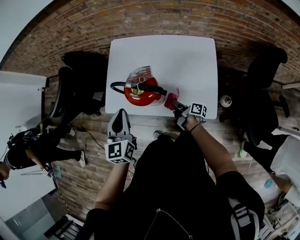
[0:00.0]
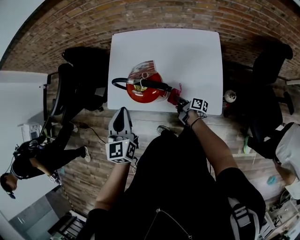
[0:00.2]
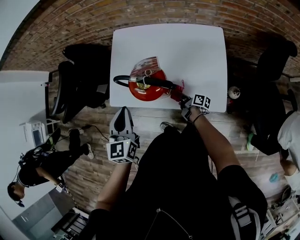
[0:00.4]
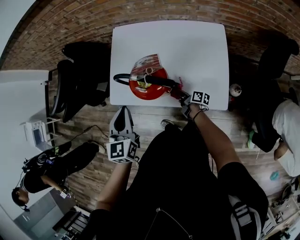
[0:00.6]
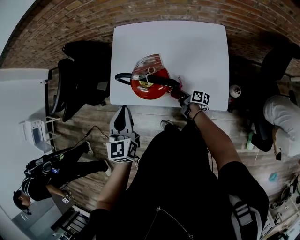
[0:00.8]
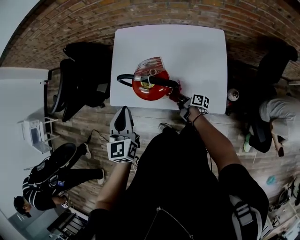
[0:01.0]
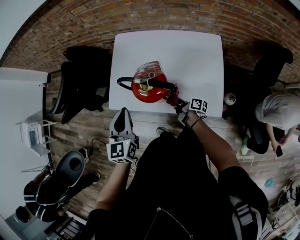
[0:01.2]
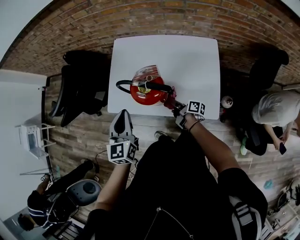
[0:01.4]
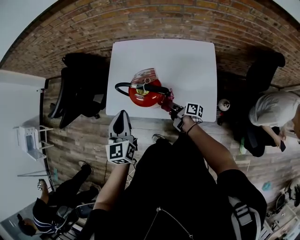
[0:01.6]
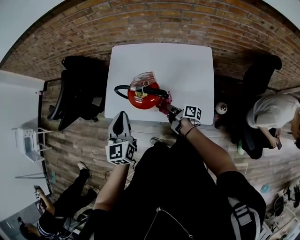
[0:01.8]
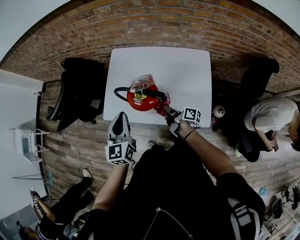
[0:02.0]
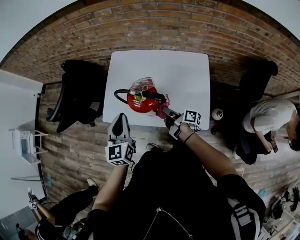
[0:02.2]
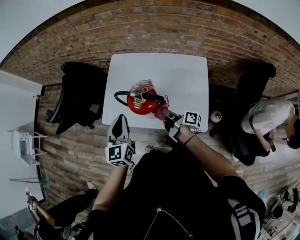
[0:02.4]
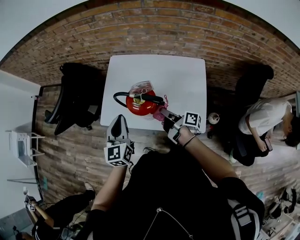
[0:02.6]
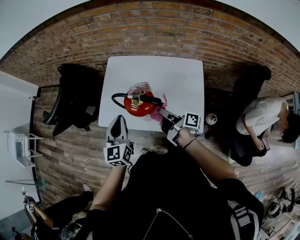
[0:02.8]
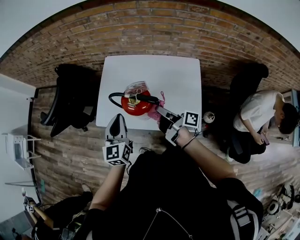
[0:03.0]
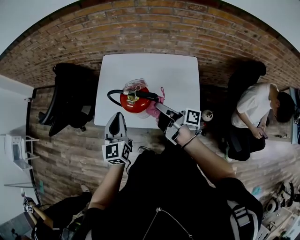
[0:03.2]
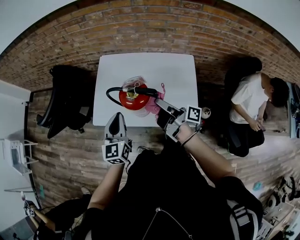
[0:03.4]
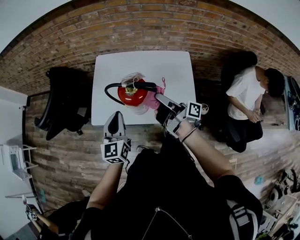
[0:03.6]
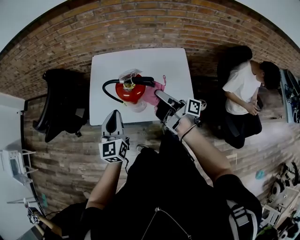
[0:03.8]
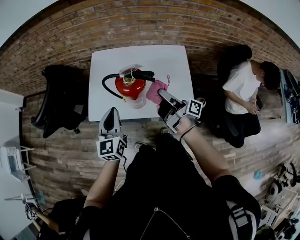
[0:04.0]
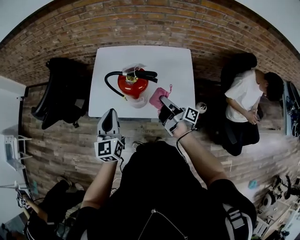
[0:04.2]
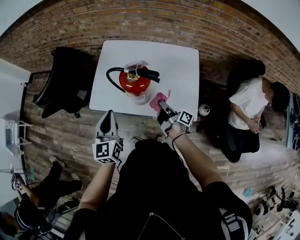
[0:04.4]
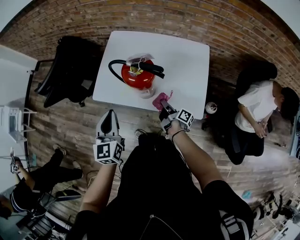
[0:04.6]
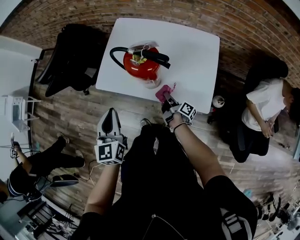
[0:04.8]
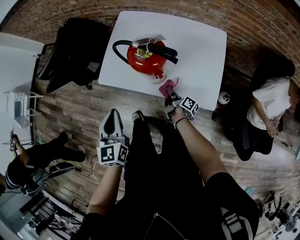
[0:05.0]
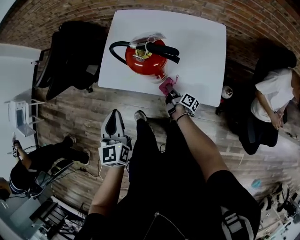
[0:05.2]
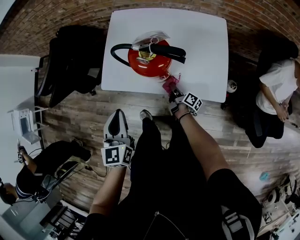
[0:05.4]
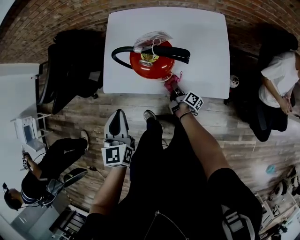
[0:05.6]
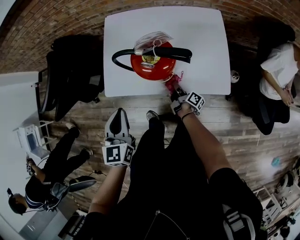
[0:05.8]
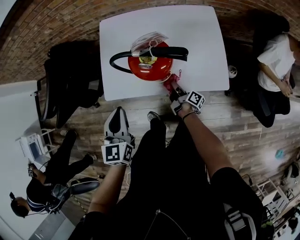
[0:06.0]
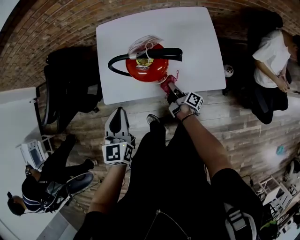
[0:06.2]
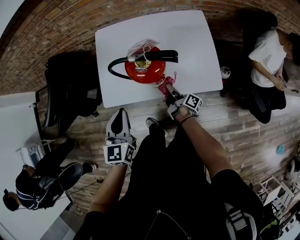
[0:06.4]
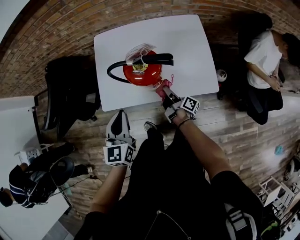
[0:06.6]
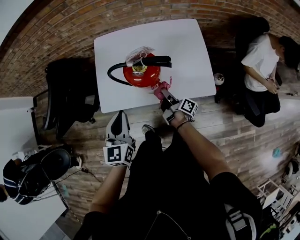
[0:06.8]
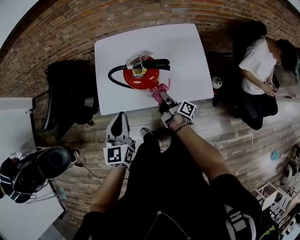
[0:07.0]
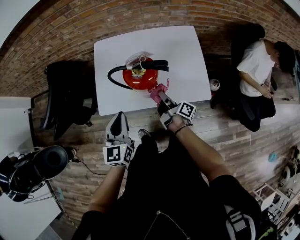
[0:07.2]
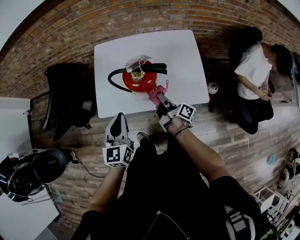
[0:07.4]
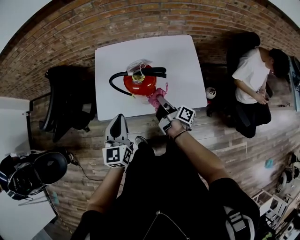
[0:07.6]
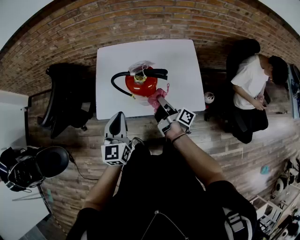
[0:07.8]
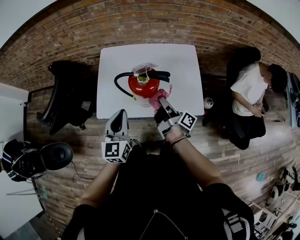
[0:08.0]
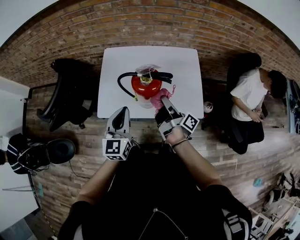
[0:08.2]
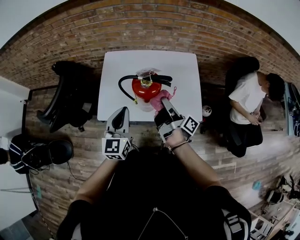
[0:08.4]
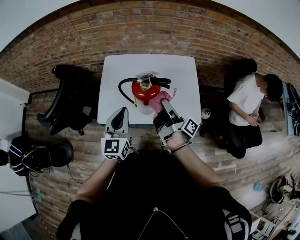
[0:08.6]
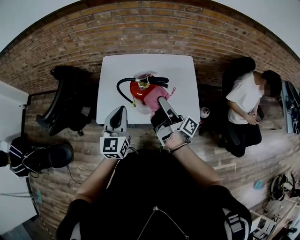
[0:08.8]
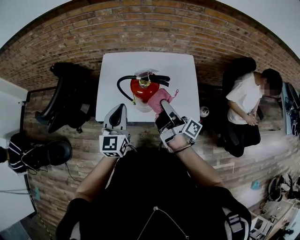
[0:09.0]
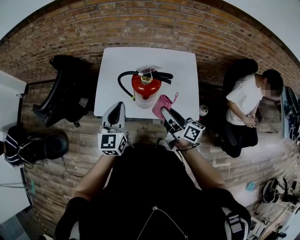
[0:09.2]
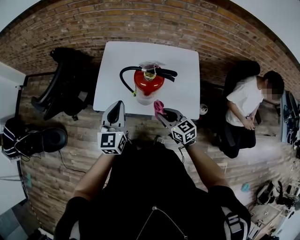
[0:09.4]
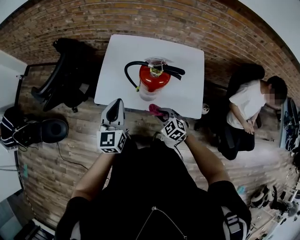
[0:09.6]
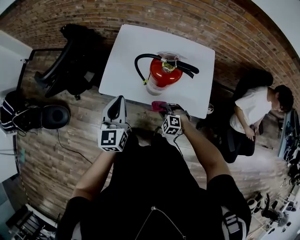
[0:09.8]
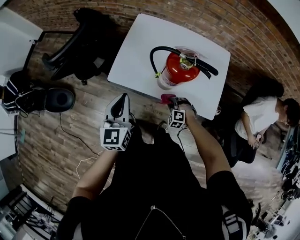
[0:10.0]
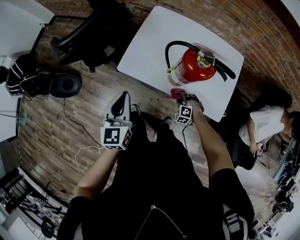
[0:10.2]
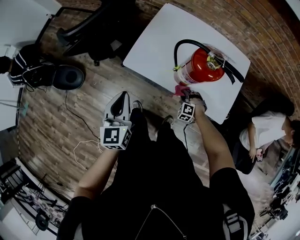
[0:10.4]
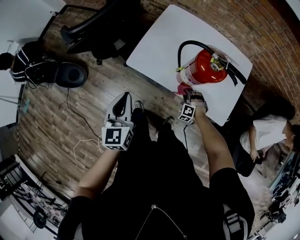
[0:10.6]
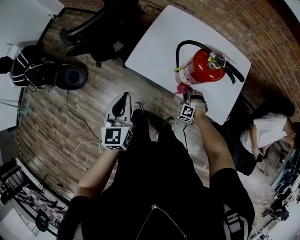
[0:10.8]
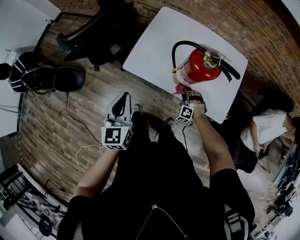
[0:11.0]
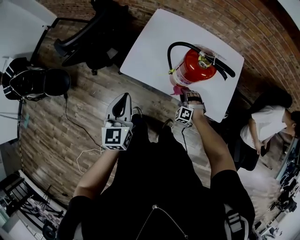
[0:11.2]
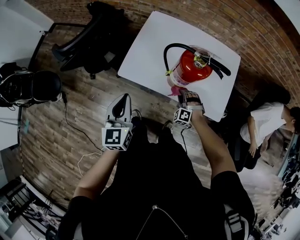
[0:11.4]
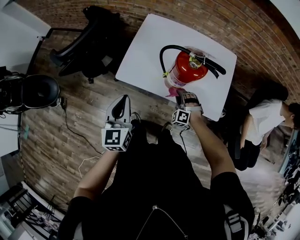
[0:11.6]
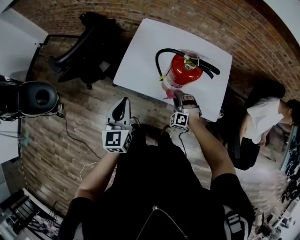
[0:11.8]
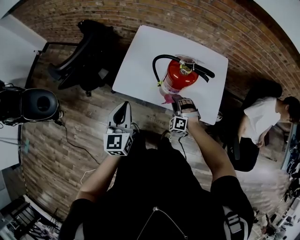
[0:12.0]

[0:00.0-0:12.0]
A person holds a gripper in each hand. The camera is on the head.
0:03.0 to 0:04.4: The left gripper moves some 10 cm.
0:04.4 to 0:06.0: The left gripper is displaced downward by roughly 5 cm.
0:06.0 to 0:07.6: The left gripper goes approximately 5 cm upward.
0:07.6 to 0:09.0: The left gripper is displaced upward by approximately 5 cm.
0:09.0 to 0:10.4: The left gripper moves about 20 cm, and changes its angle by about 30 degrees.
0:10.4 to 0:12.0: The left gripper shifts by about 5 cm.

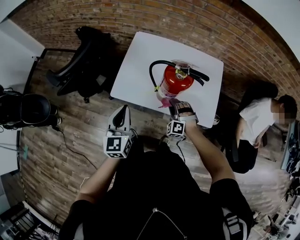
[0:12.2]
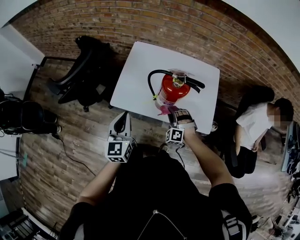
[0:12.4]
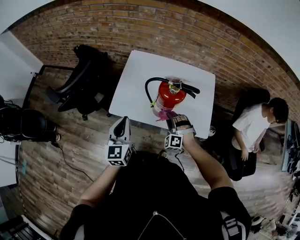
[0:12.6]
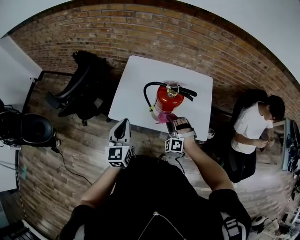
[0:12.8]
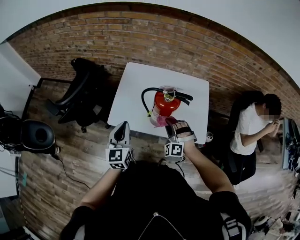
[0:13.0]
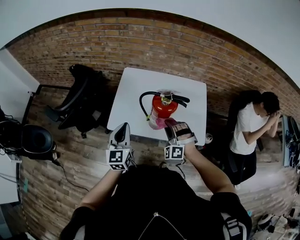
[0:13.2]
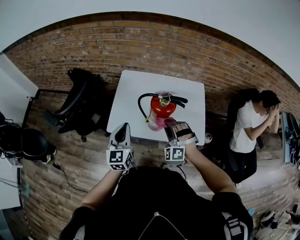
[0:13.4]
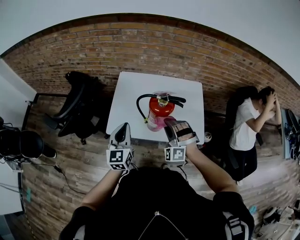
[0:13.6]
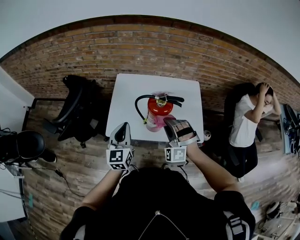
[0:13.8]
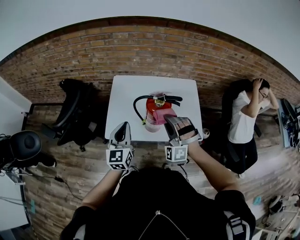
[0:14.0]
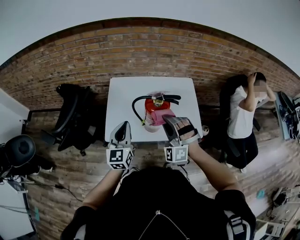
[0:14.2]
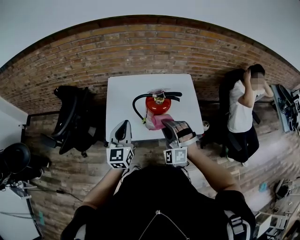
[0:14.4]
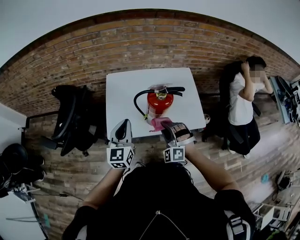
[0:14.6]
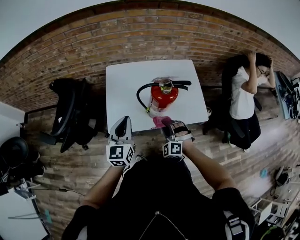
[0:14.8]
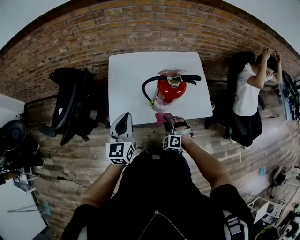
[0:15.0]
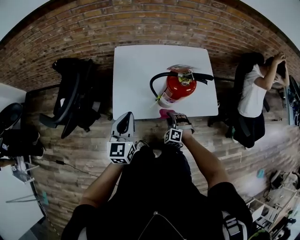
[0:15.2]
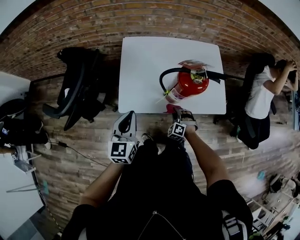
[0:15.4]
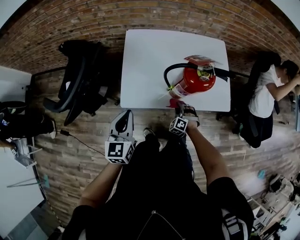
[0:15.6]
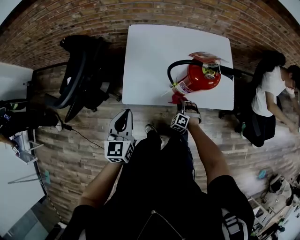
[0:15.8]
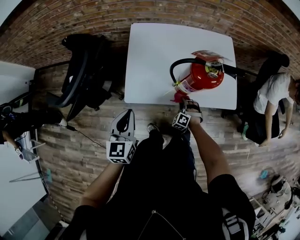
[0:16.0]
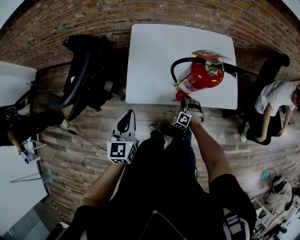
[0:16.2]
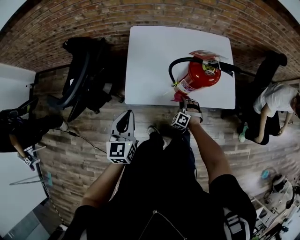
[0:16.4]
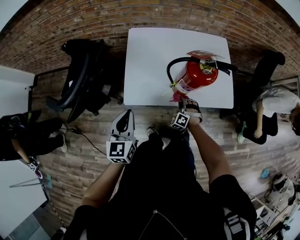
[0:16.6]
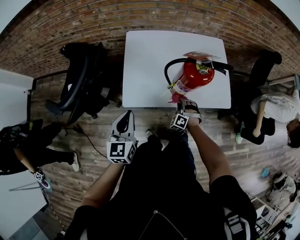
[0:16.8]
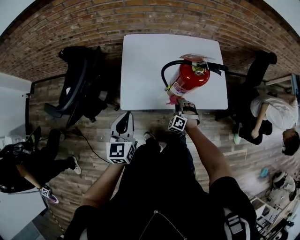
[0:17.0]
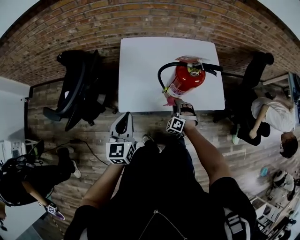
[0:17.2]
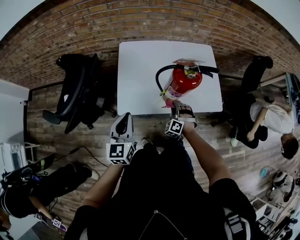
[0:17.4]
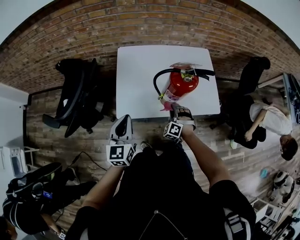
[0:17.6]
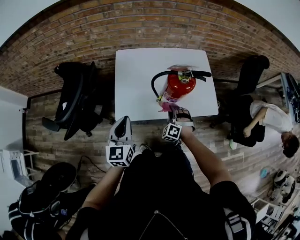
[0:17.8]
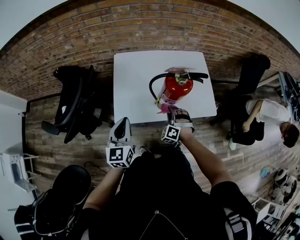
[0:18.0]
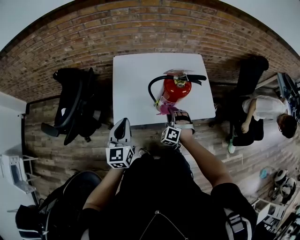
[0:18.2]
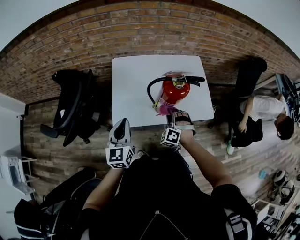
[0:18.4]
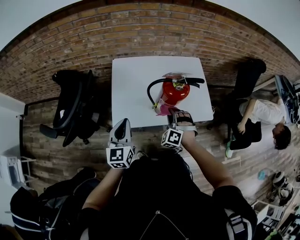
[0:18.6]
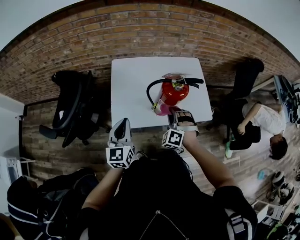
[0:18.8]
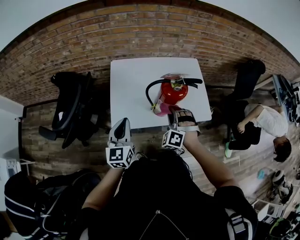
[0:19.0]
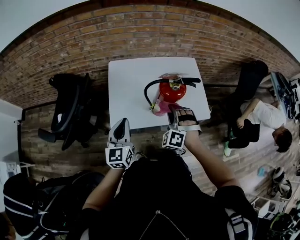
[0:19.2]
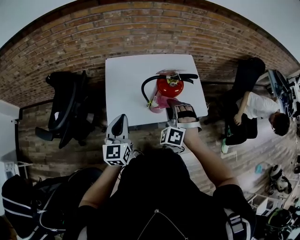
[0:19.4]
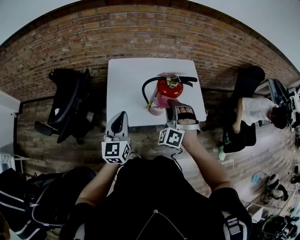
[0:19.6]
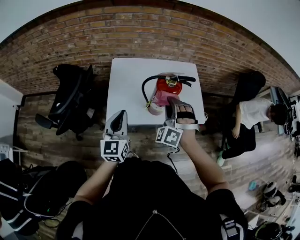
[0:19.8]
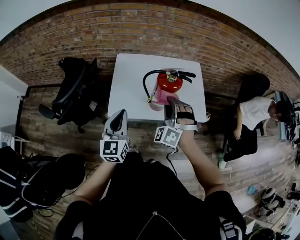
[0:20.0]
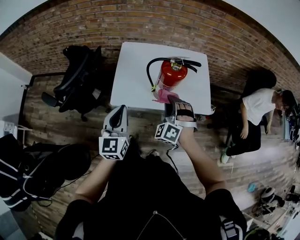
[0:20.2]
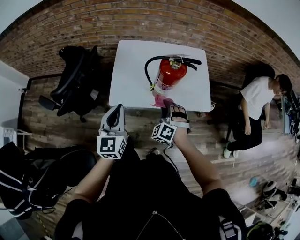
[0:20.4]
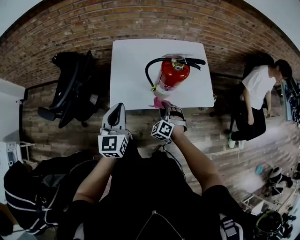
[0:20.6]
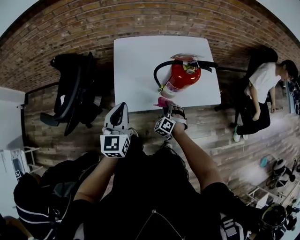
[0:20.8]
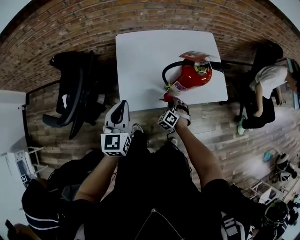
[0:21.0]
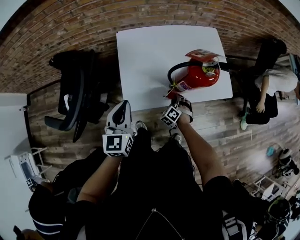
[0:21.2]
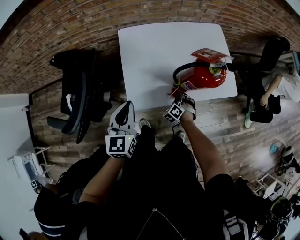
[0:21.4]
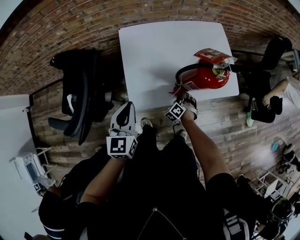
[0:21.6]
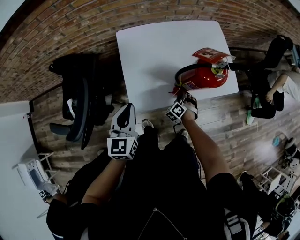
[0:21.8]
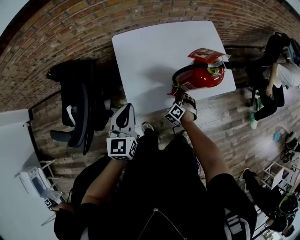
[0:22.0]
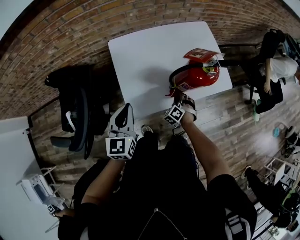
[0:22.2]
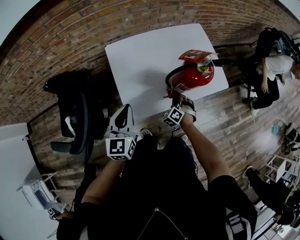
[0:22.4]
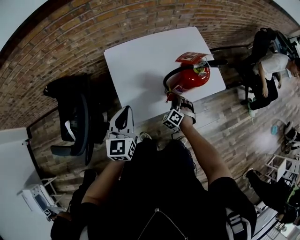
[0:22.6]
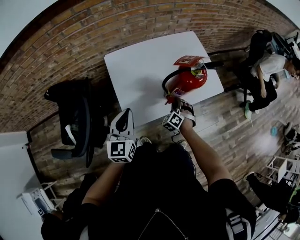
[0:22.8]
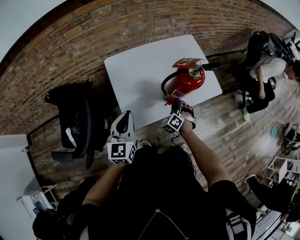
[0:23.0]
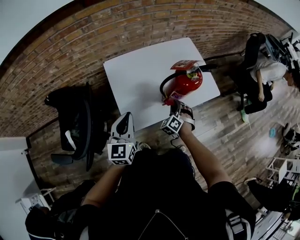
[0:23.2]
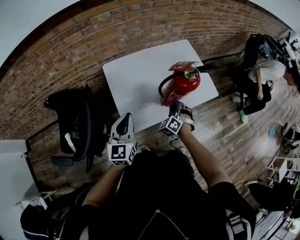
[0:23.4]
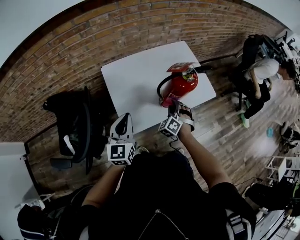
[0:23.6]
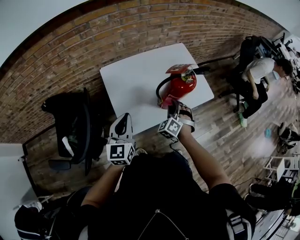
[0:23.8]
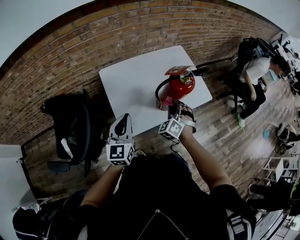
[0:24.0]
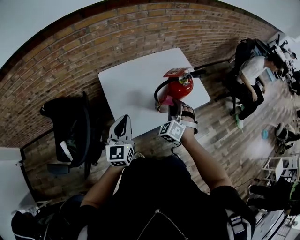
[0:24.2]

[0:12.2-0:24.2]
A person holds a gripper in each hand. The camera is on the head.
0:12.2 to 0:13.8: The left gripper changes place by about 10 cm.
0:13.8 to 0:15.2: The left gripper ends up roughly 10 cm from where it was.
0:15.2 to 0:16.6: The left gripper ends up about 10 cm from where it was.
0:16.6 to 0:18.2: The left gripper ends up approximately 5 cm from where it was.
0:18.2 to 0:19.8: The left gripper is displaced upward by some 5 cm.
0:19.8 to 0:21.2: The left gripper shifts by about 15 cm.
